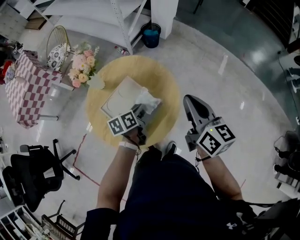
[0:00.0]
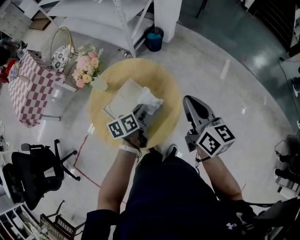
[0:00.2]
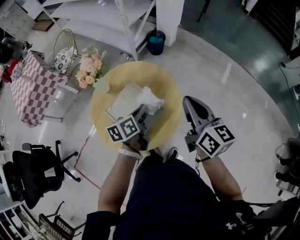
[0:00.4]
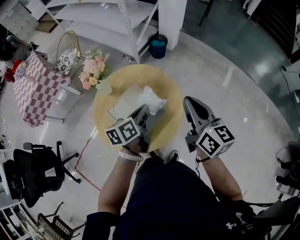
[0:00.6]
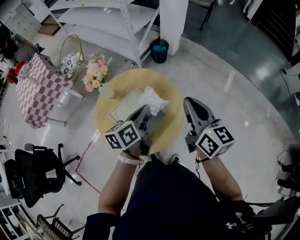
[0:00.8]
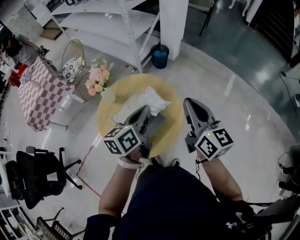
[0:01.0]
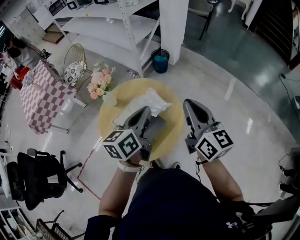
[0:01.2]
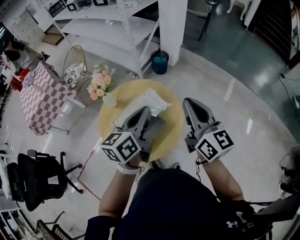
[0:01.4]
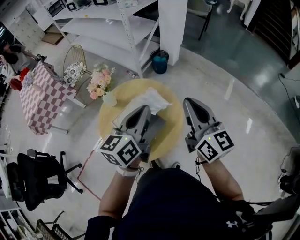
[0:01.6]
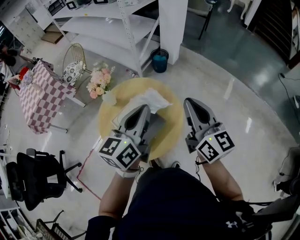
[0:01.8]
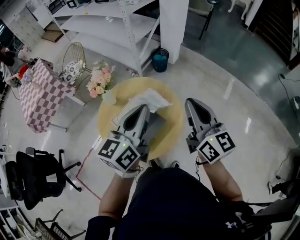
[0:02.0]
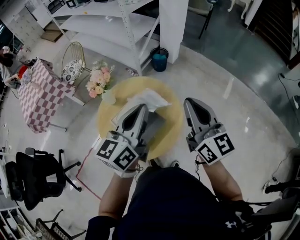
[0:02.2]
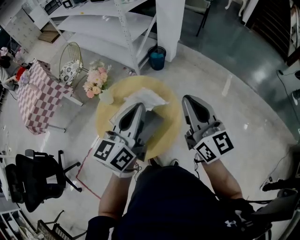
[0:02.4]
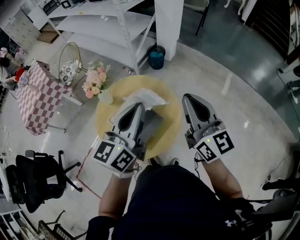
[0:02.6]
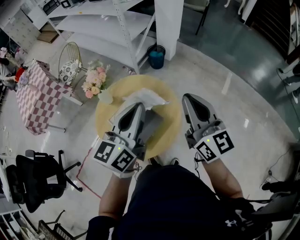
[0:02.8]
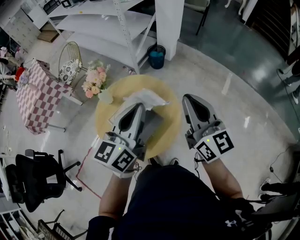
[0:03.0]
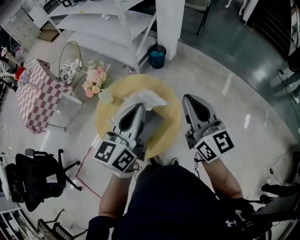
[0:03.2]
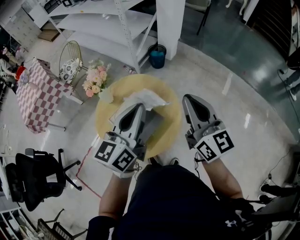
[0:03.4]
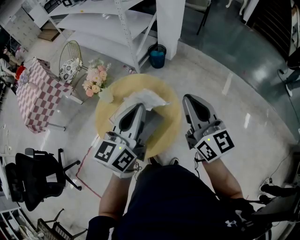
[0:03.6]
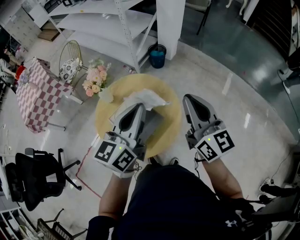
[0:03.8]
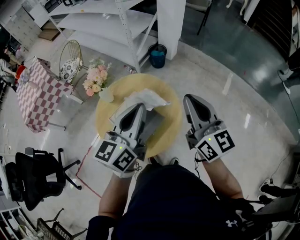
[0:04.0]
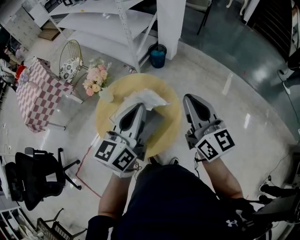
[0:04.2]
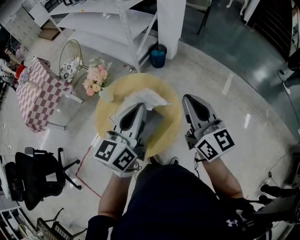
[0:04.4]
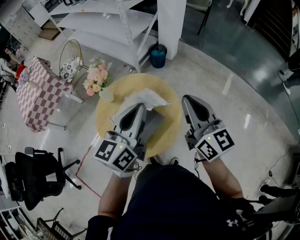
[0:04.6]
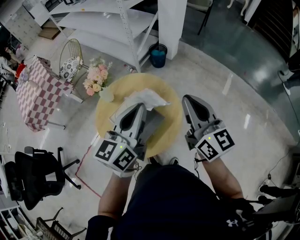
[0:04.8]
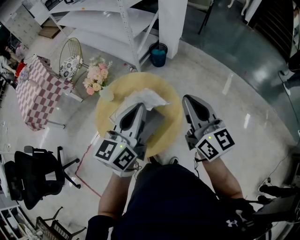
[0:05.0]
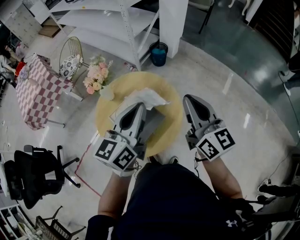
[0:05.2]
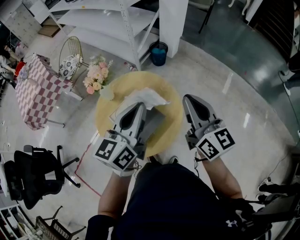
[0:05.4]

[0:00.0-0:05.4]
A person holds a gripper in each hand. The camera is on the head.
0:00.0 to 0:01.4: The right gripper travels upward by approximately 10 cm. Meanwhile the left gripper heads upward, covering roughly 25 cm, and turns by approximately 30 degrees.
0:01.4 to 0:02.8: The left gripper travels upward by roughly 5 cm.
0:02.8 to 0:04.0: Both grippers stay put.
0:04.0 to 0:05.4: The grippers stay close to where they were, moving slightly.

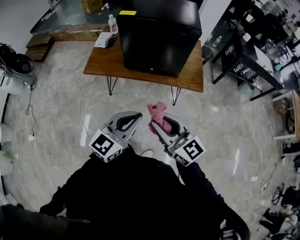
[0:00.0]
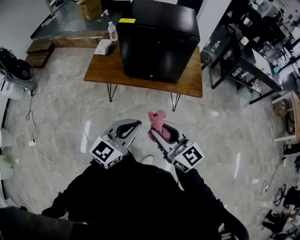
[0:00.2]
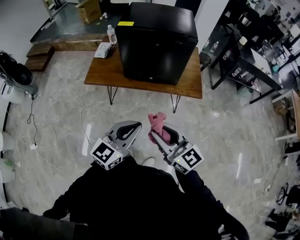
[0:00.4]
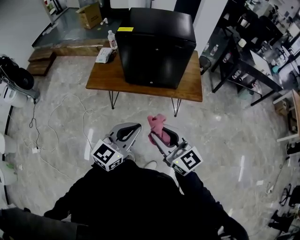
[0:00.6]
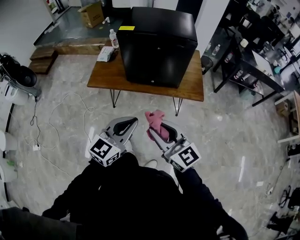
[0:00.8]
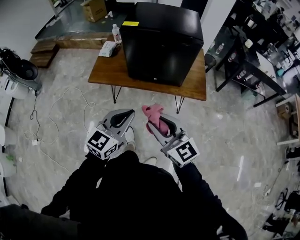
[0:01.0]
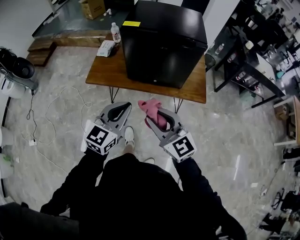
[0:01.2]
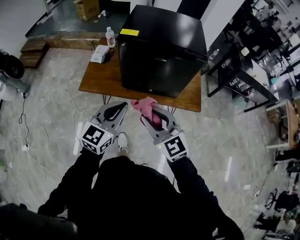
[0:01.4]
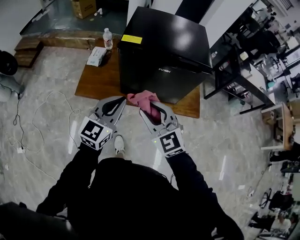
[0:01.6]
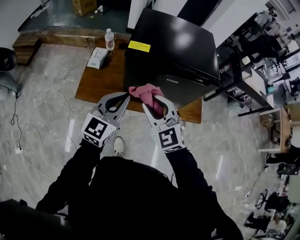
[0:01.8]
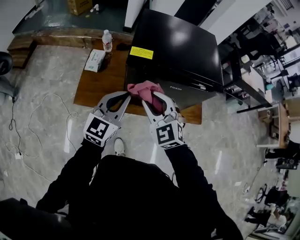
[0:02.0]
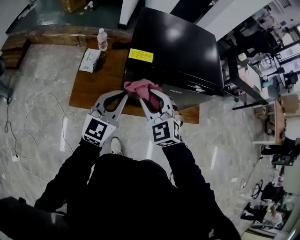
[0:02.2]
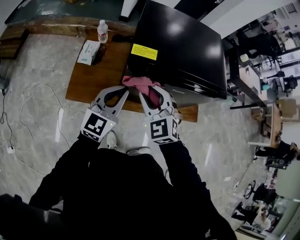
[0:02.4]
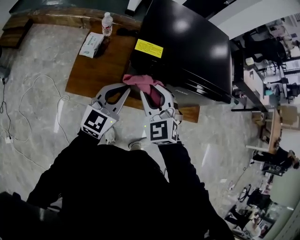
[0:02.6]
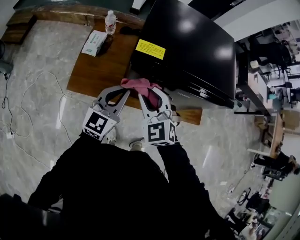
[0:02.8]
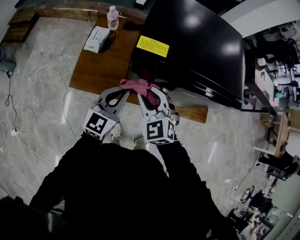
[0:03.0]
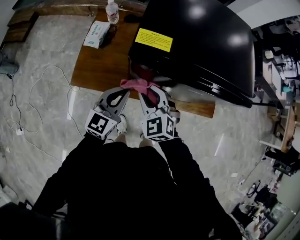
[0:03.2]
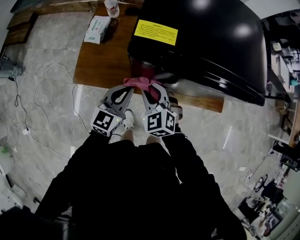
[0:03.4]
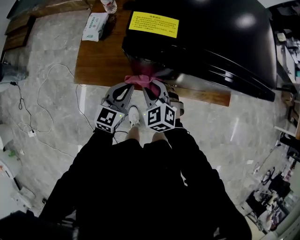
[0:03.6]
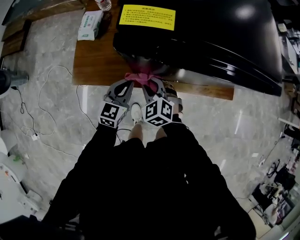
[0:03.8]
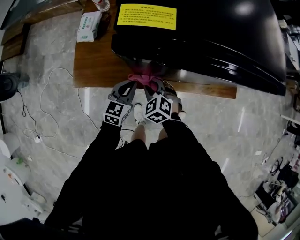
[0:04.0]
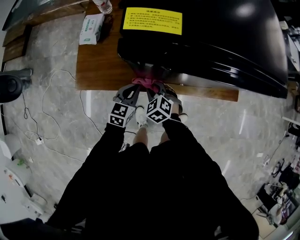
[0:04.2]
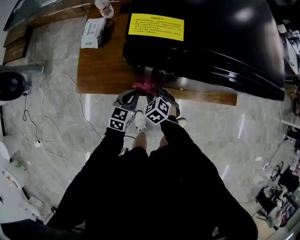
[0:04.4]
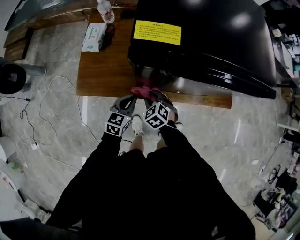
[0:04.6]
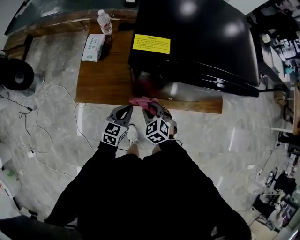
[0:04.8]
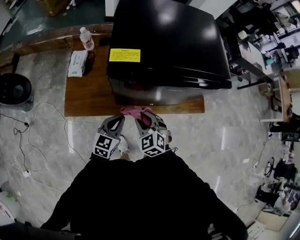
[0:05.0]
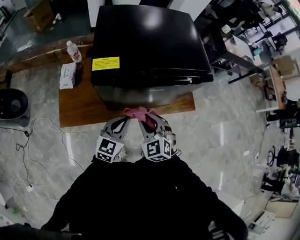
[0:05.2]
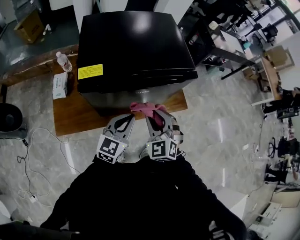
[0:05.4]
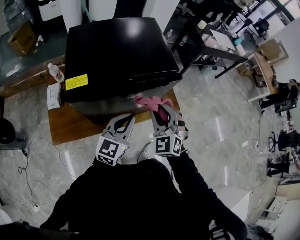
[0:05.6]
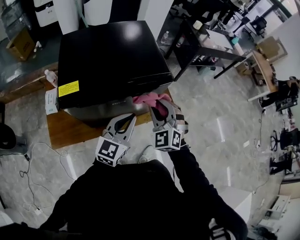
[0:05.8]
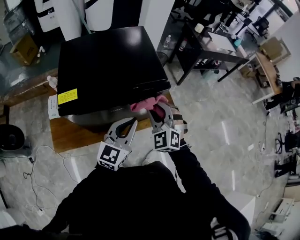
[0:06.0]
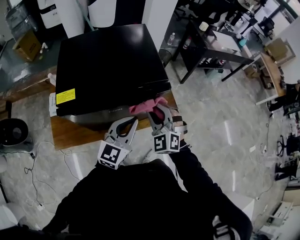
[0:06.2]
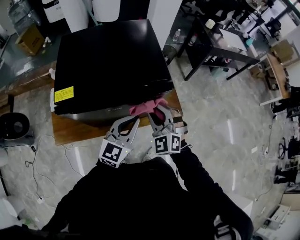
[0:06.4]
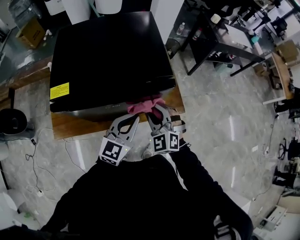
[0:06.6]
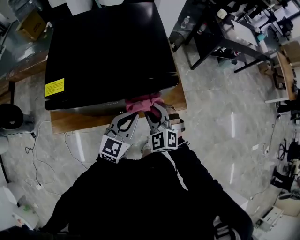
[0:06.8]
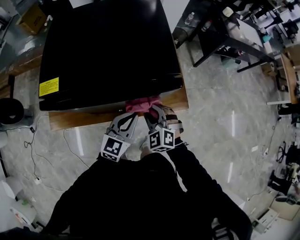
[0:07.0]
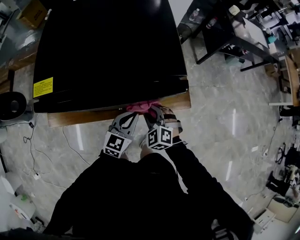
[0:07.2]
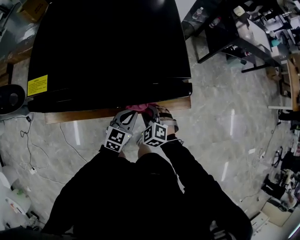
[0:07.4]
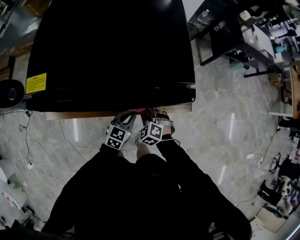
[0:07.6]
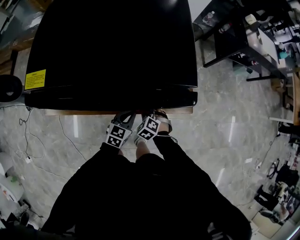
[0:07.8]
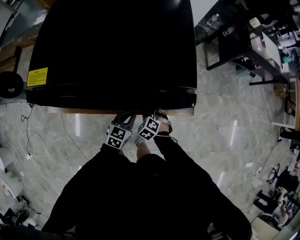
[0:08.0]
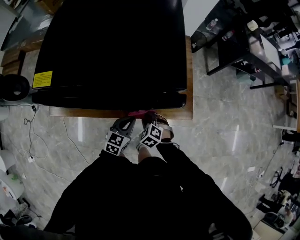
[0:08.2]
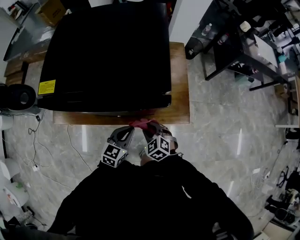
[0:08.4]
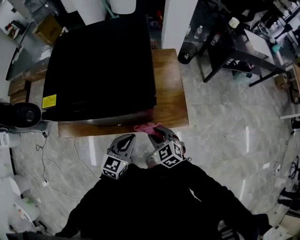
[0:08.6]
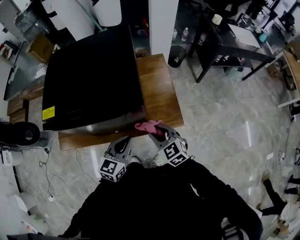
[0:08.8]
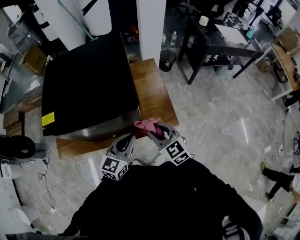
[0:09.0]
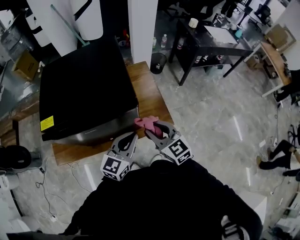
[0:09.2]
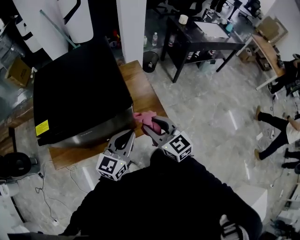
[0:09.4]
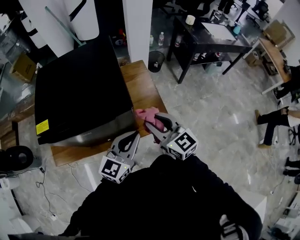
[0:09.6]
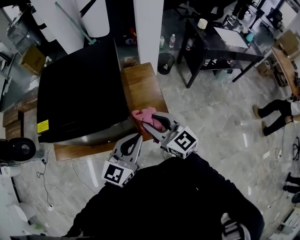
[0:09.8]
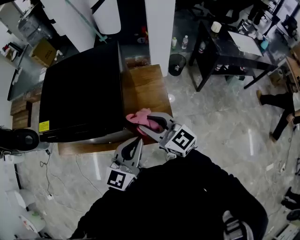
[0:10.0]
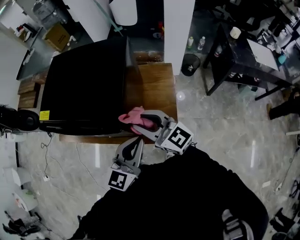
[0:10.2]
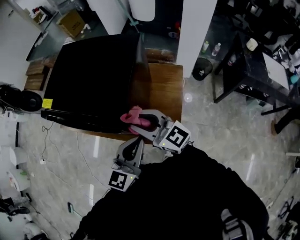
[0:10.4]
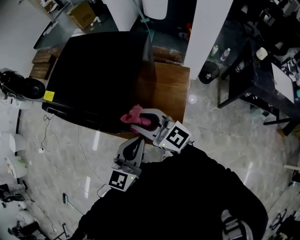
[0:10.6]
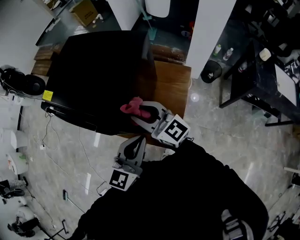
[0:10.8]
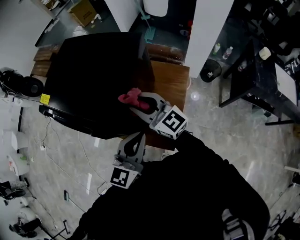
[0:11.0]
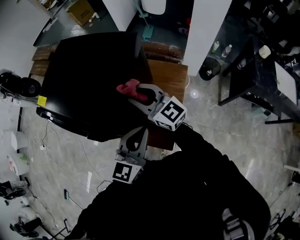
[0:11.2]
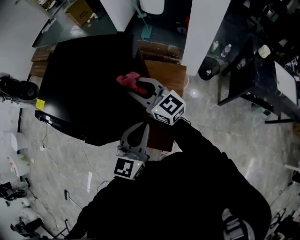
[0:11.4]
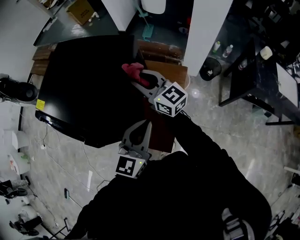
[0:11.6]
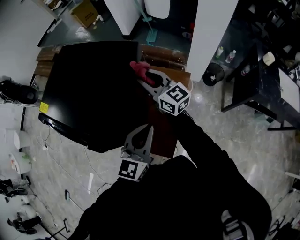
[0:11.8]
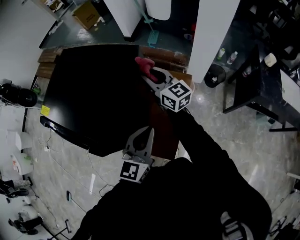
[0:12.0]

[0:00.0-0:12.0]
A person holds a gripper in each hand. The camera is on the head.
0:00.0 to 0:01.6: The right gripper goes some 25 cm forward, and rotates roughly 30 degrees. Meanwhile the left gripper is displaced forward and to the left by some 30 cm.
0:01.6 to 0:03.0: The left gripper travels forward and downward by roughly 20 cm; the right gripper travels forward, downward and to the left by approximately 25 cm.
0:03.0 to 0:04.4: Both grippers move downward, some 30 cm. The left gripper turns by approximately 30 degrees, while the right gripper tips its fingers downward by some 30 degrees.
0:04.4 to 0:06.0: Both grippers travel together upward, some 40 cm. The left gripper turns by approximately 40 degrees. The right gripper tips its fingers upward by approximately 40 degrees.
0:06.0 to 0:07.6: Both grippers travel together downward, approximately 35 cm. The right gripper tilts its fingers approximately 40 degrees downward. Meanwhile the left gripper rotates roughly 30 degrees.
0:07.6 to 0:09.0: The left gripper is displaced upward by roughly 25 cm, while the right gripper goes approximately 30 cm upward and to the right, and tilts its fingers about 30 degrees upward.
0:09.0 to 0:10.4: The left gripper ends up about 20 cm from where it was, and swivels some 30 degrees; the right gripper shifts by some 15 cm, and rotates approximately 50 degrees.
0:10.4 to 0:12.0: The right gripper is displaced forward and to the right by some 30 cm; the left gripper is displaced forward and to the right by some 15 cm.

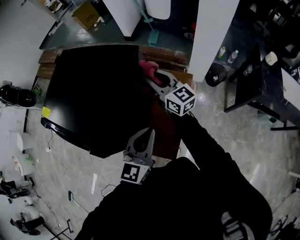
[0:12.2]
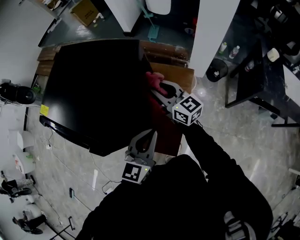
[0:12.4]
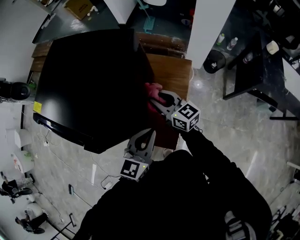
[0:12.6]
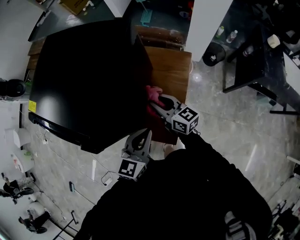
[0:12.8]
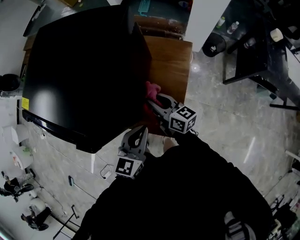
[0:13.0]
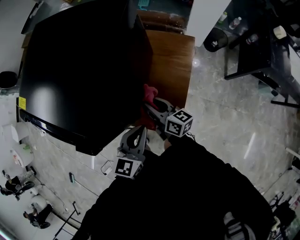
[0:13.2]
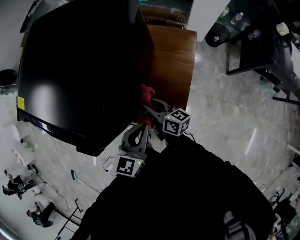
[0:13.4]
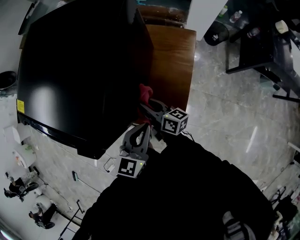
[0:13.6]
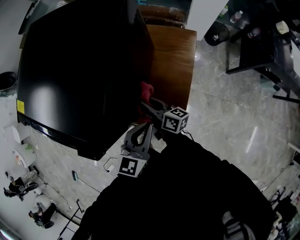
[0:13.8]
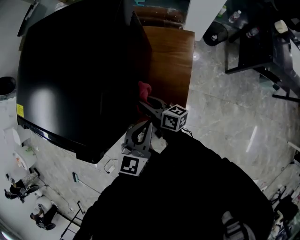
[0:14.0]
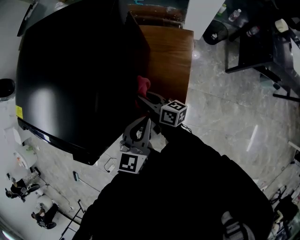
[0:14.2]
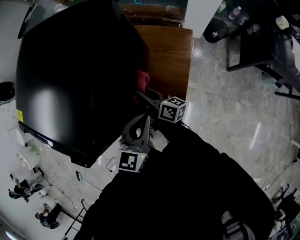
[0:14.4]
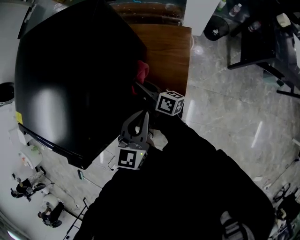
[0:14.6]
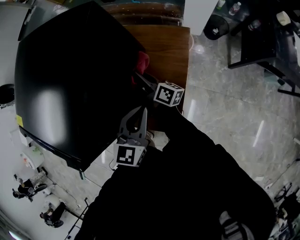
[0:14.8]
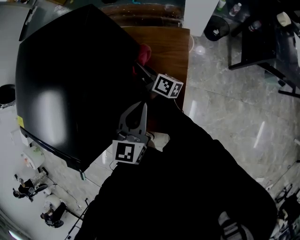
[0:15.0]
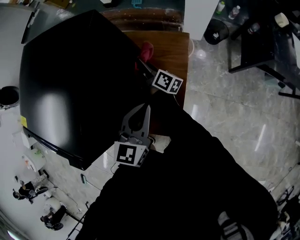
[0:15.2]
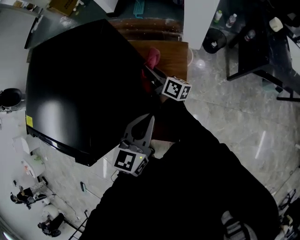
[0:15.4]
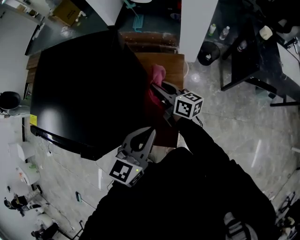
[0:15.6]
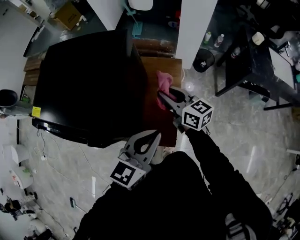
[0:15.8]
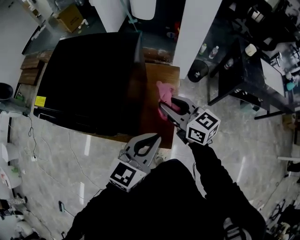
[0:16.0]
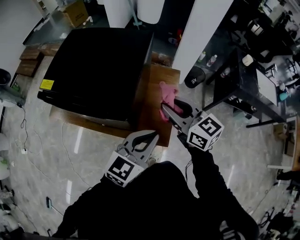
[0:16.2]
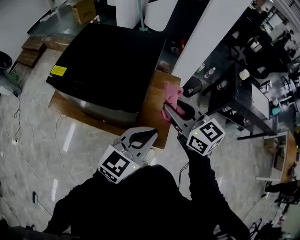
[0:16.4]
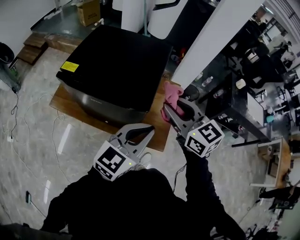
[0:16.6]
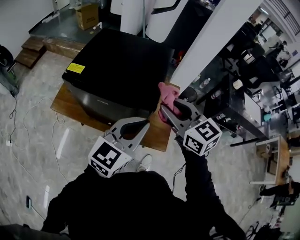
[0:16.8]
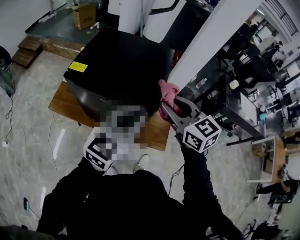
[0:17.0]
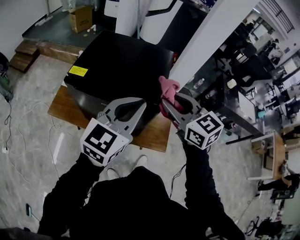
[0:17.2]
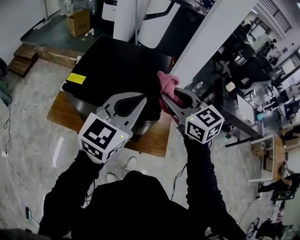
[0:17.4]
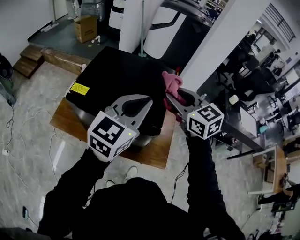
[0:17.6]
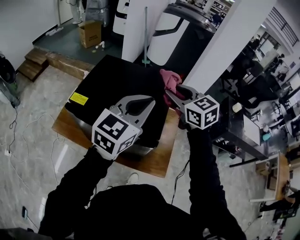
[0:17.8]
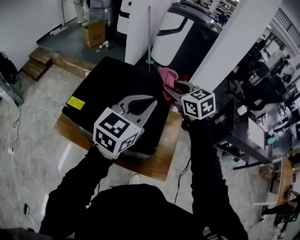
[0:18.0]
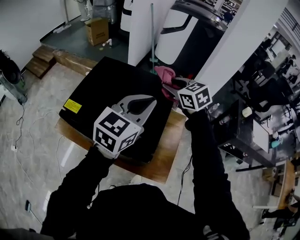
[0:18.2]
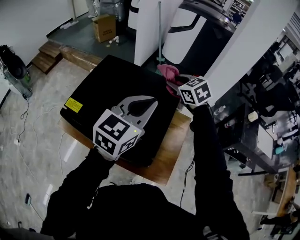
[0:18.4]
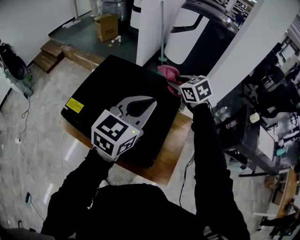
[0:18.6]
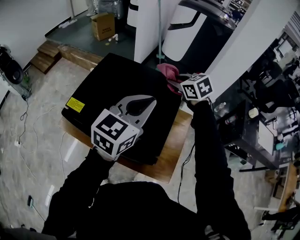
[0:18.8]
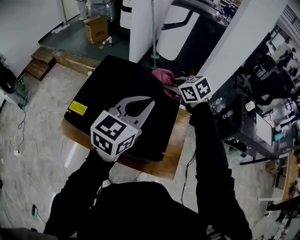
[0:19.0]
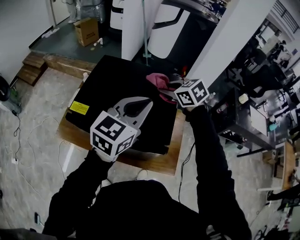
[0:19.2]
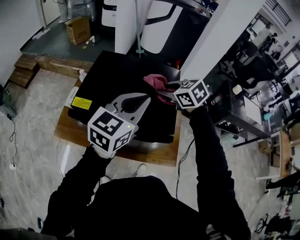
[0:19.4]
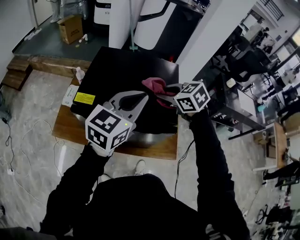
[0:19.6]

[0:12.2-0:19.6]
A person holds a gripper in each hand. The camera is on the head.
0:12.2 to 0:13.6: The left gripper heads downward, to the left and backward, covering roughly 20 cm; the right gripper goes roughly 30 cm downward, backward and to the left, and rotates around the line of its fingers by roughly 40 degrees, clockwise from behind.
0:13.6 to 0:15.2: The left gripper goes about 15 cm forward and to the right, while the right gripper heads forward and to the right, covering about 25 cm, and rotates some 30 degrees.
0:15.2 to 0:16.6: The right gripper moves upward and backward, some 50 cm, and rotates around the line of its fingers by roughly 70 degrees, counterclockwise from behind, while the left gripper heads upward, backward and to the left, covering approximately 35 cm, and changes its angle by about 20 degrees.
0:16.6 to 0:18.2: Both grippers move forward, approximately 30 cm. The right gripper rotates roughly 20 degrees.
0:18.2 to 0:19.6: The left gripper goes about 15 cm to the left and backward; the right gripper travels backward and to the left by about 20 cm.
